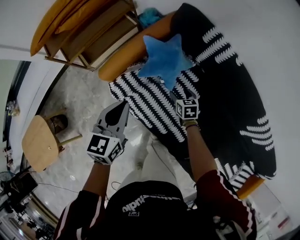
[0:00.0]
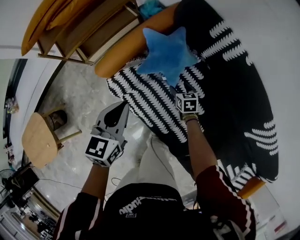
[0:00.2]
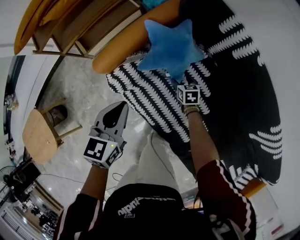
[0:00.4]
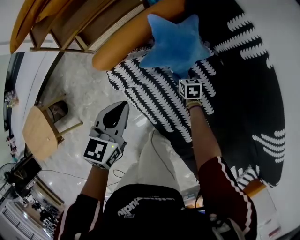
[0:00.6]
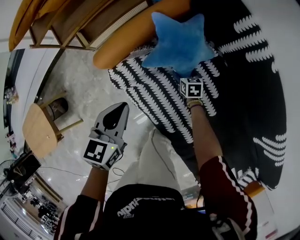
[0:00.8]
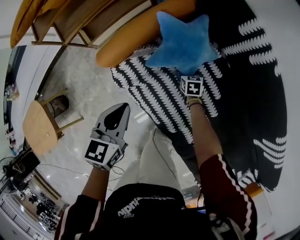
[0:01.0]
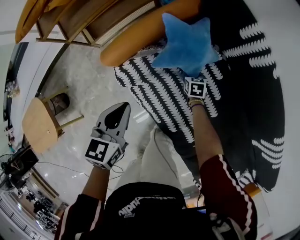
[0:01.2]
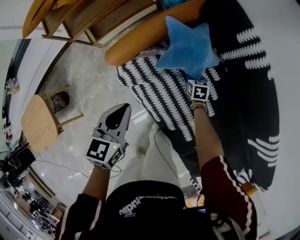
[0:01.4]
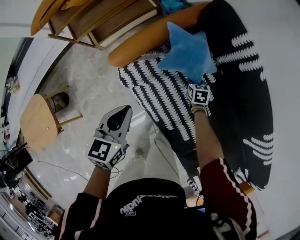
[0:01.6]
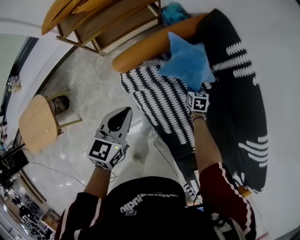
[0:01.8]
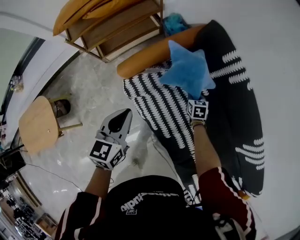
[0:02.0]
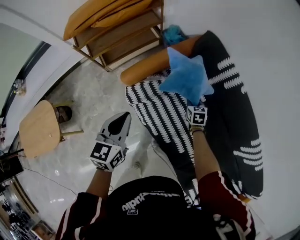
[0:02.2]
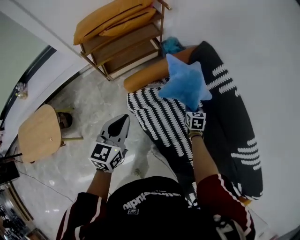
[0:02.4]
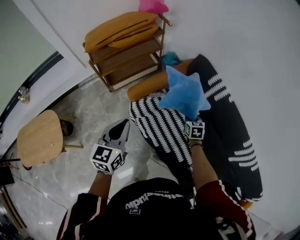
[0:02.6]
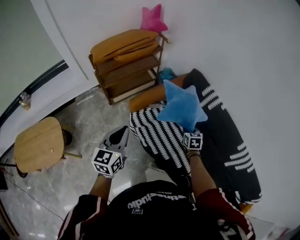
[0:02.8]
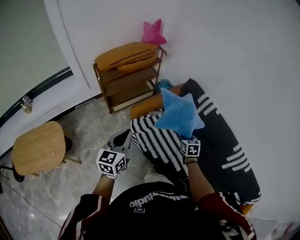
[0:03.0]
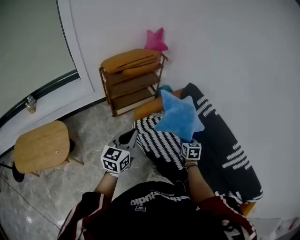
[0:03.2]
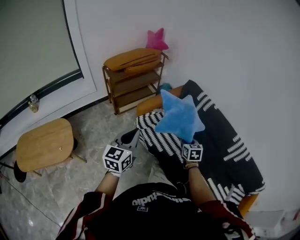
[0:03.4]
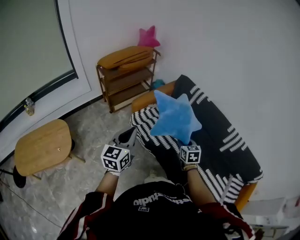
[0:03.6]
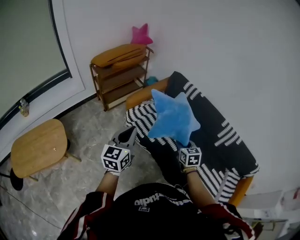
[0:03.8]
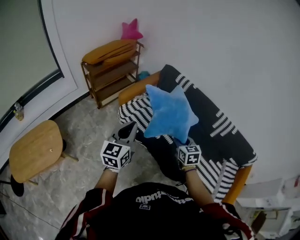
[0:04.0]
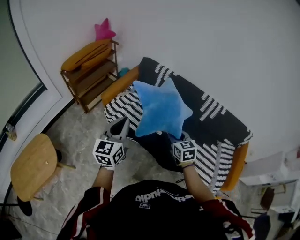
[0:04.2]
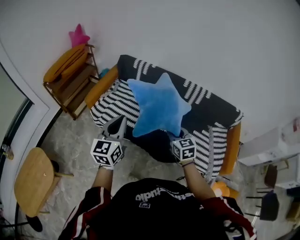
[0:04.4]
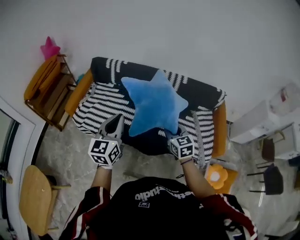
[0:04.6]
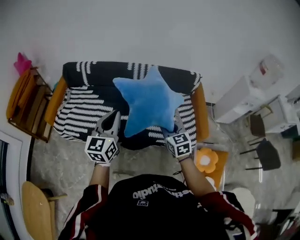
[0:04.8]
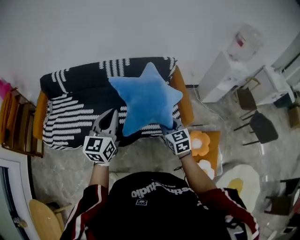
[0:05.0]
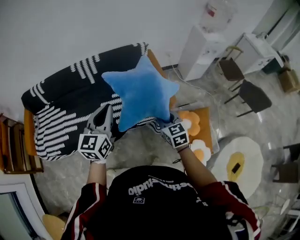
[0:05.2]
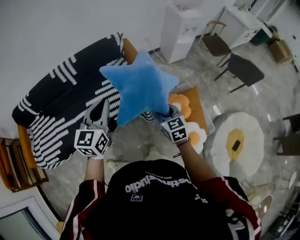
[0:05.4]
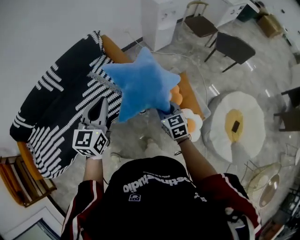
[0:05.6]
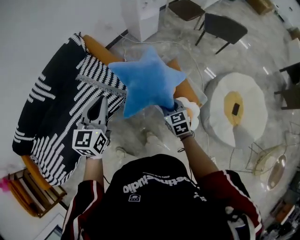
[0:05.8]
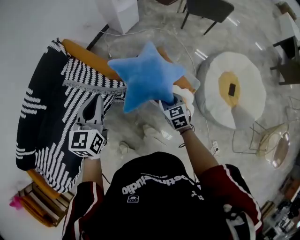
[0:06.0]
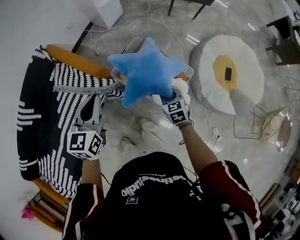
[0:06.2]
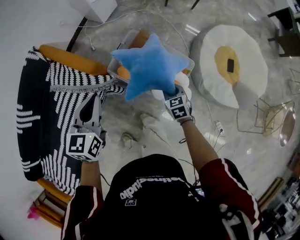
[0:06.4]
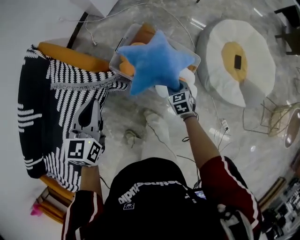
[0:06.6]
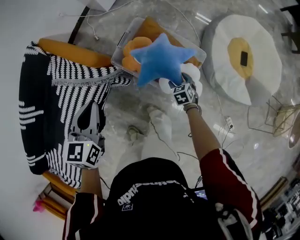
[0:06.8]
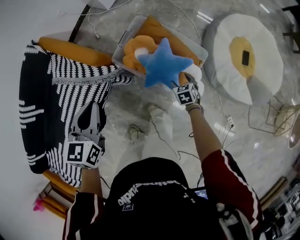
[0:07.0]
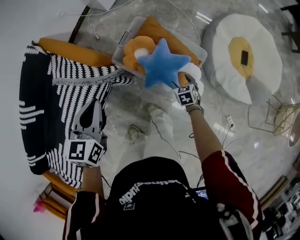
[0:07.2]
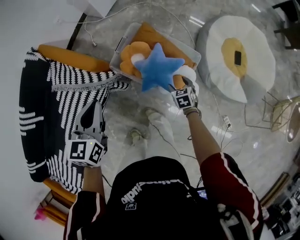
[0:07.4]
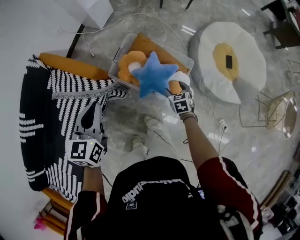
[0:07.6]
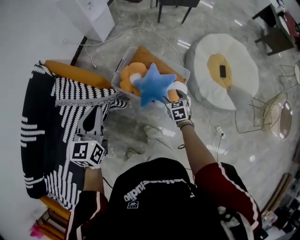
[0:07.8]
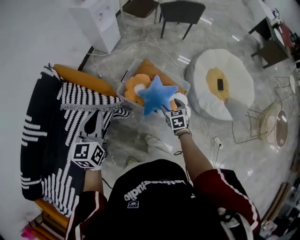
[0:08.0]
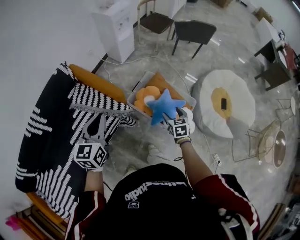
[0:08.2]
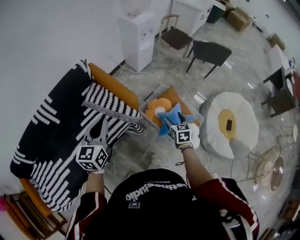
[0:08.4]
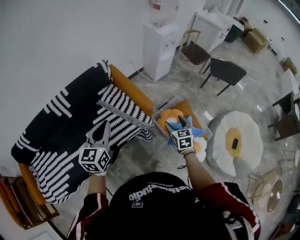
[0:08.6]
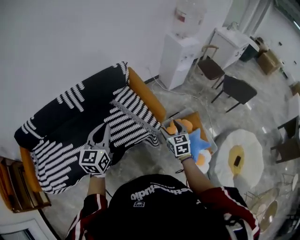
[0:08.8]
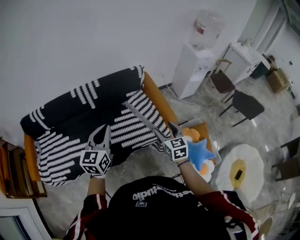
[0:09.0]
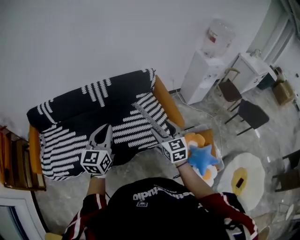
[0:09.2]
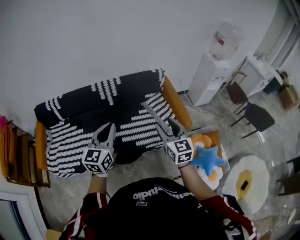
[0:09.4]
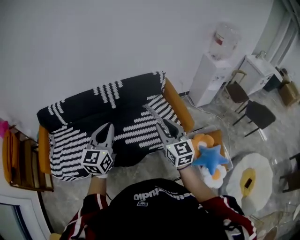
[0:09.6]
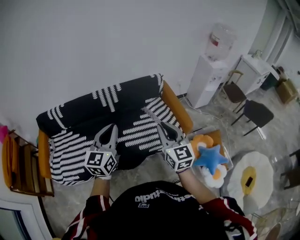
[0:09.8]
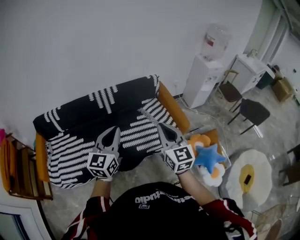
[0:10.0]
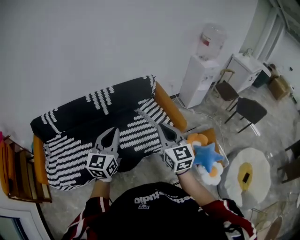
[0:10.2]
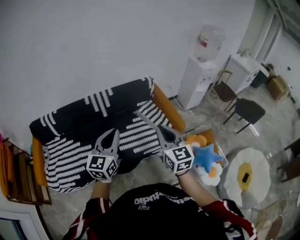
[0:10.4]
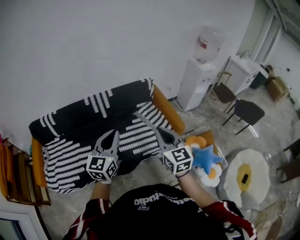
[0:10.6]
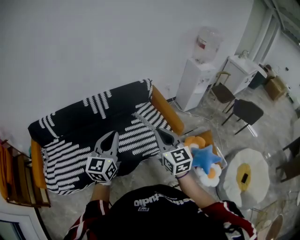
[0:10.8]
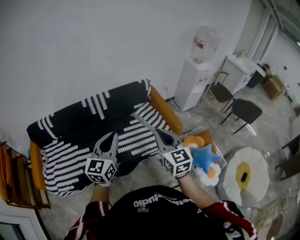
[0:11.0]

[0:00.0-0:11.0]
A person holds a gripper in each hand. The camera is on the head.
0:00.0 to 0:01.6: The right gripper shifts approximately 10 cm forward and downward, and closes, while the left gripper travels to the left by approximately 5 cm.
0:01.6 to 0:03.2: Both grippers travel together upward and backward, some 40 cm. The right gripper rotates roughly 20 degrees; the left gripper rotates approximately 30 degrees.
0:03.2 to 0:04.8: Both grippers are carried roughly 50 cm. The right gripper changes its angle by roughly 40 degrees, while the left gripper changes its angle by about 50 degrees.
0:04.8 to 0:06.2: The pair of grippers is taken some 70 cm. The left gripper turns by roughly 60 degrees, while the right gripper rotates roughly 70 degrees.
0:06.2 to 0:07.8: The left gripper goes downward and returns, roughly 10 cm each way; the right gripper travels downward and back again, approximately 20 cm each way, and opens its fingers.
0:07.8 to 0:09.4: Both grippers are carried some 50 cm. The left gripper changes its angle by approximately 50 degrees. The right gripper tilts its fingers roughly 40 degrees upward.
0:09.4 to 0:11.0: The right gripper shifts about 5 cm backward, and closes its fingers.

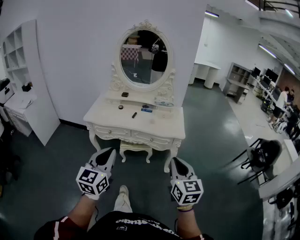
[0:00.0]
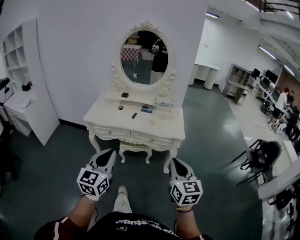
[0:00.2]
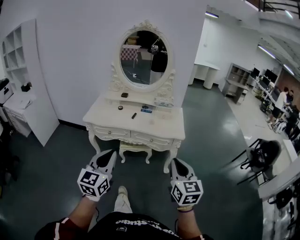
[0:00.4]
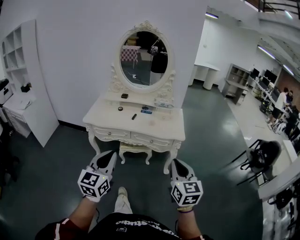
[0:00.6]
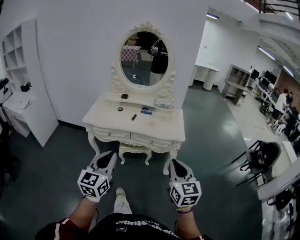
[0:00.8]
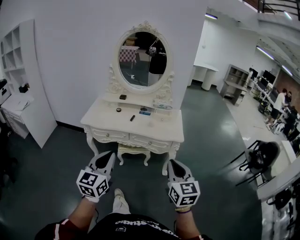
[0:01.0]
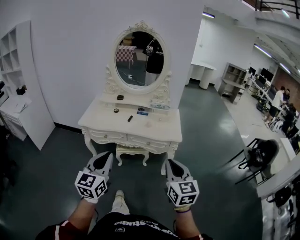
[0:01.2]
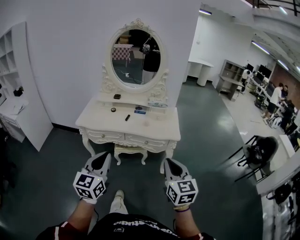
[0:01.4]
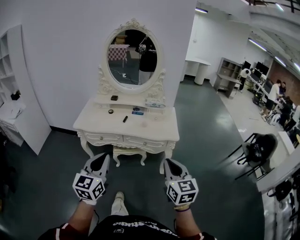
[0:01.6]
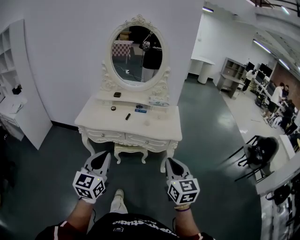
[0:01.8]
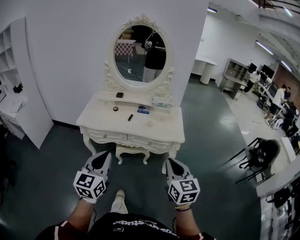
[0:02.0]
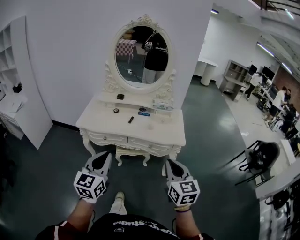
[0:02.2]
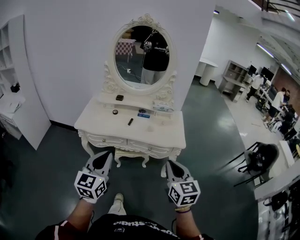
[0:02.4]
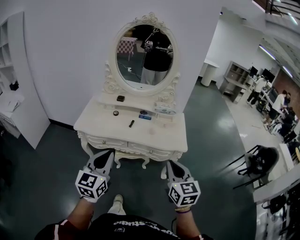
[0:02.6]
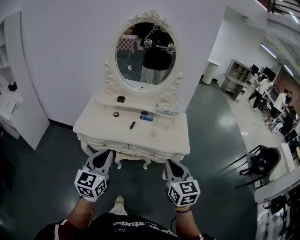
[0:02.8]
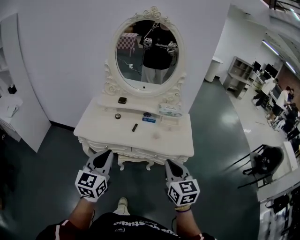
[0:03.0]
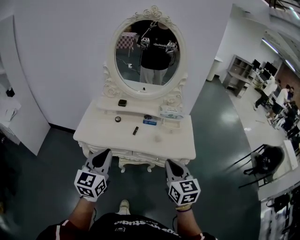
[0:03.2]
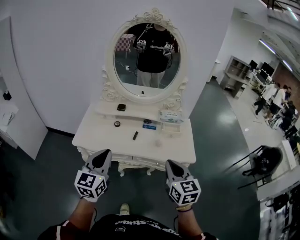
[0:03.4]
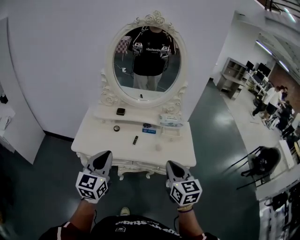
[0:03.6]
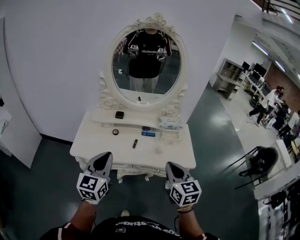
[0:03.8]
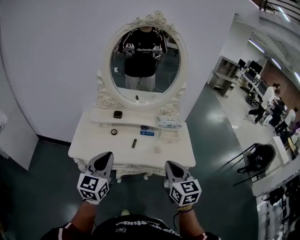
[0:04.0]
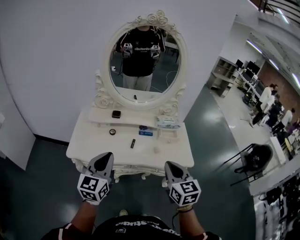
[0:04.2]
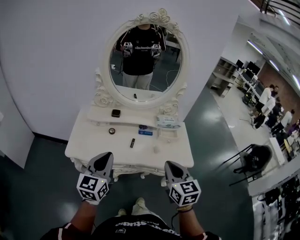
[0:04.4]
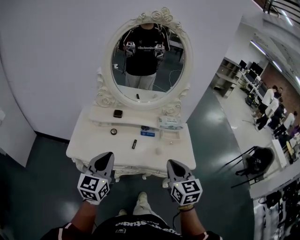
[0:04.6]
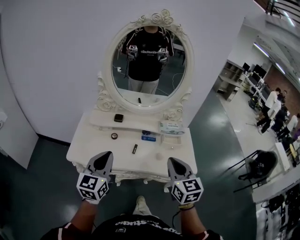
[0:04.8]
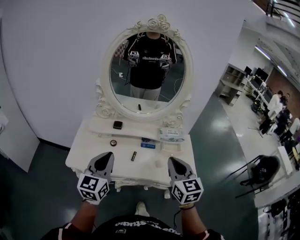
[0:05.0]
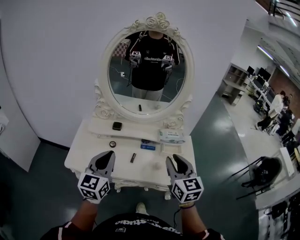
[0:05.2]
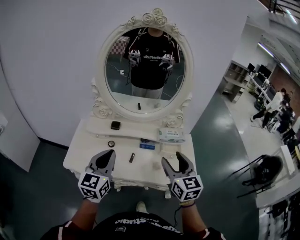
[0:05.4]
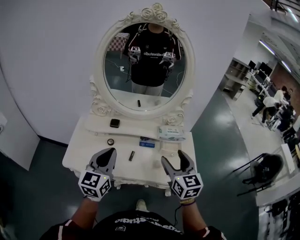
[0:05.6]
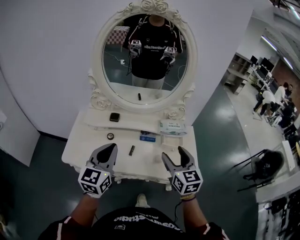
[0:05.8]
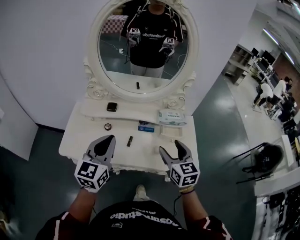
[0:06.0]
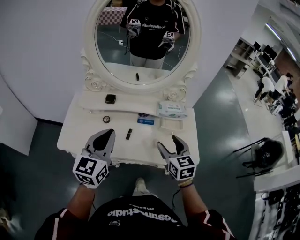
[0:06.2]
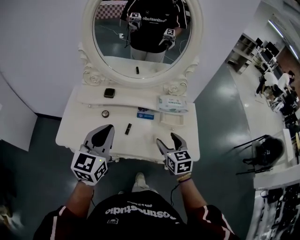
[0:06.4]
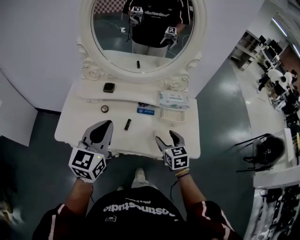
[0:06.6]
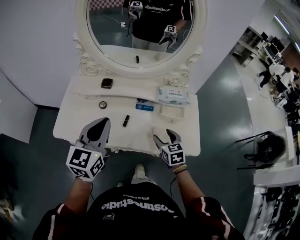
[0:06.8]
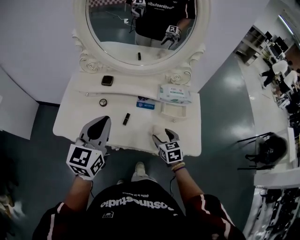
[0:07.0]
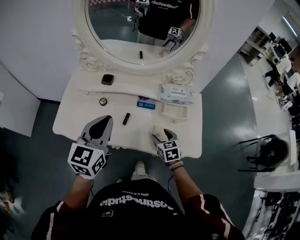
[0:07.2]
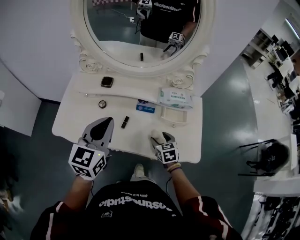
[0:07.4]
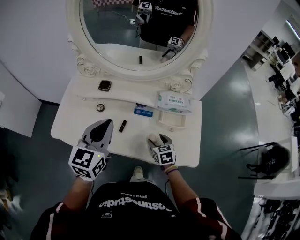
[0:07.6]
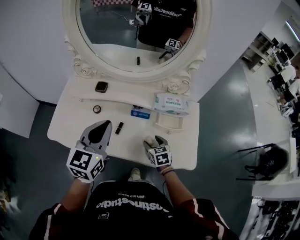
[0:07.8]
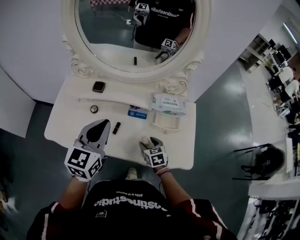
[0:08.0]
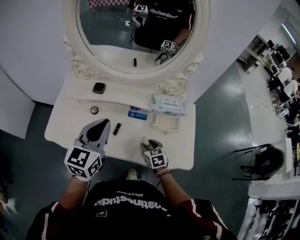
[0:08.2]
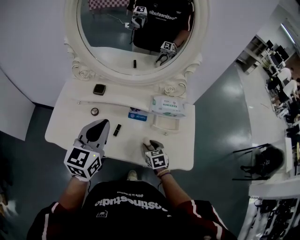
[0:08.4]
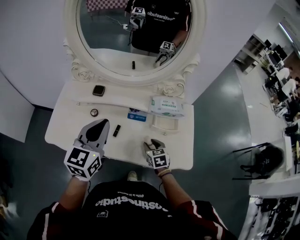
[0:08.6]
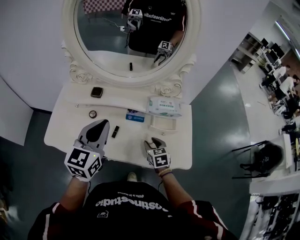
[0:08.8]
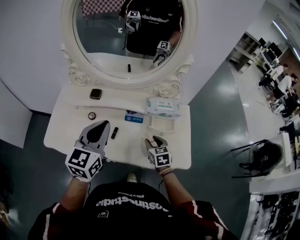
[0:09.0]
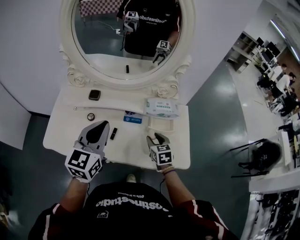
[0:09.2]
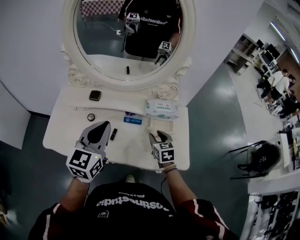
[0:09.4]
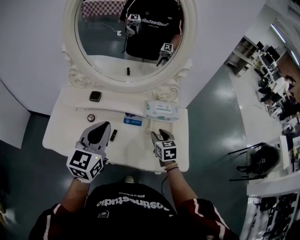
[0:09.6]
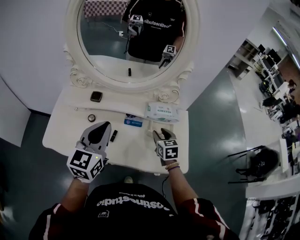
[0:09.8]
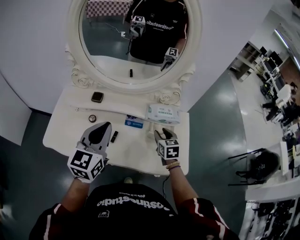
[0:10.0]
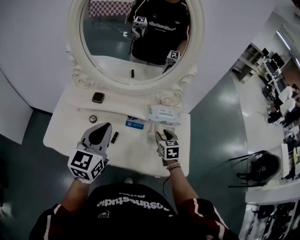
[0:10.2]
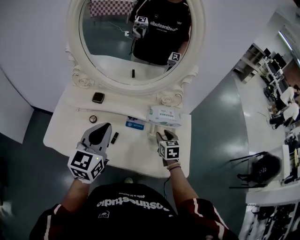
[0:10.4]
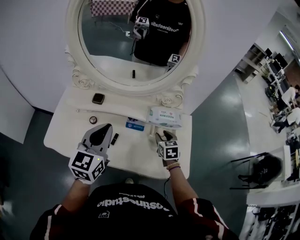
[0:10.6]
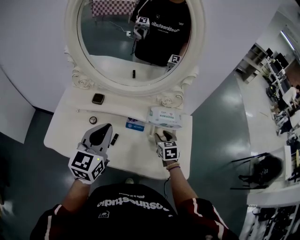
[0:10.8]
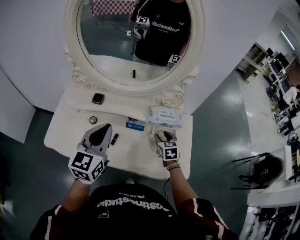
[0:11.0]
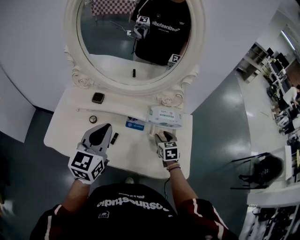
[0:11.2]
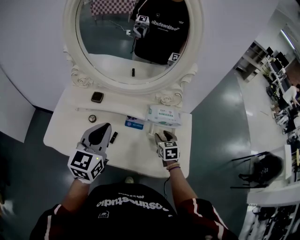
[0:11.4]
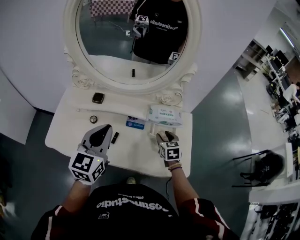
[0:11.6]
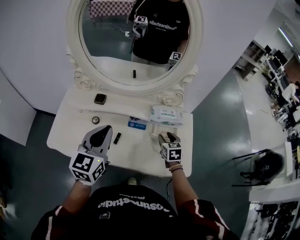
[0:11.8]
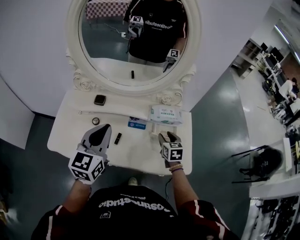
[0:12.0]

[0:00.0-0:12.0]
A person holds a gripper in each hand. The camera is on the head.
0:00.0 to 0:01.6: The left gripper shifts by about 5 cm.
0:01.6 to 0:03.0: The left gripper heads forward, covering some 20 cm, while the right gripper moves forward and to the left, roughly 20 cm.
0:03.0 to 0:04.4: Both grippers move forward and to the left, approximately 15 cm.
0:04.4 to 0:06.0: The left gripper travels forward and to the right by some 15 cm, while the right gripper moves forward, roughly 15 cm, and opens.
0:06.0 to 0:07.6: The right gripper is displaced downward by approximately 25 cm, and turns by some 30 degrees, while the left gripper travels forward and to the right by about 10 cm.
0:07.6 to 0:09.0: The right gripper shifts by about 5 cm.
0:09.0 to 0:10.4: The right gripper heads forward, covering about 10 cm.
0:10.4 to 0:12.0: The grippers make only small movements.

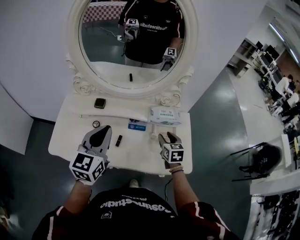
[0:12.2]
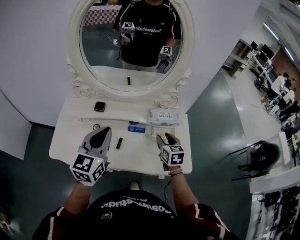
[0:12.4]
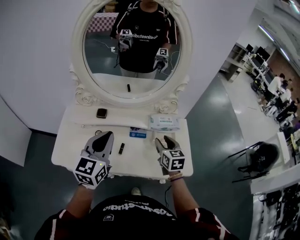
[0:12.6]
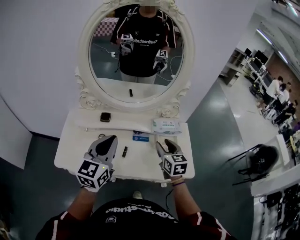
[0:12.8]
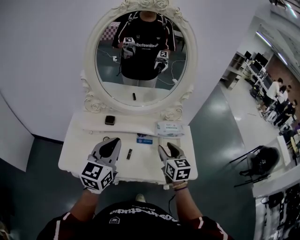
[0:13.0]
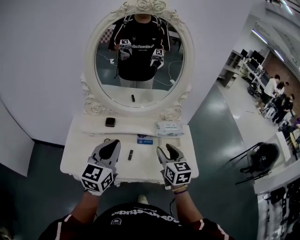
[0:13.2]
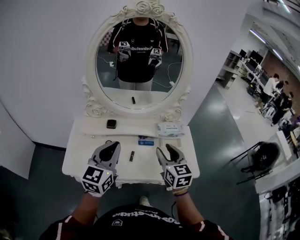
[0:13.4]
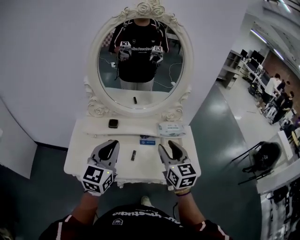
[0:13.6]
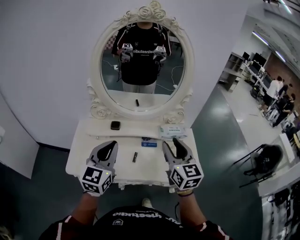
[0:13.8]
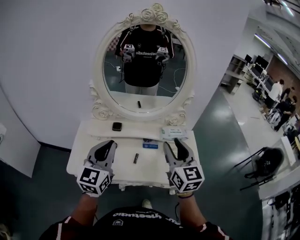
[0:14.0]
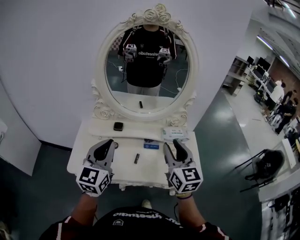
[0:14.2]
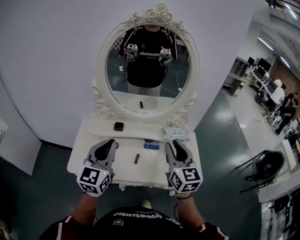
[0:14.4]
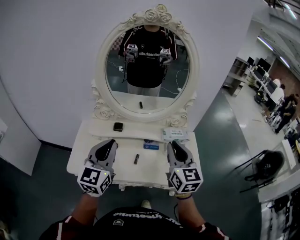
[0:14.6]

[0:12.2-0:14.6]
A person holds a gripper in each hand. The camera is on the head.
0:12.2 to 0:13.4: The right gripper goes some 25 cm upward, to the left and backward. Meanwhile the left gripper shifts about 5 cm to the left.
0:13.4 to 0:14.6: The right gripper heads upward, covering some 10 cm, and closes; the left gripper changes place by roughly 5 cm.
